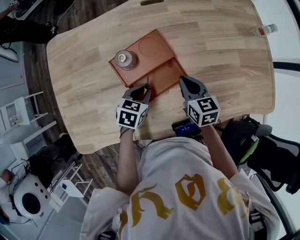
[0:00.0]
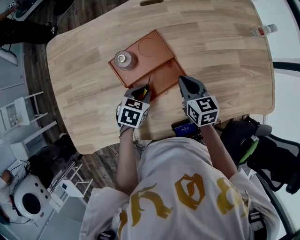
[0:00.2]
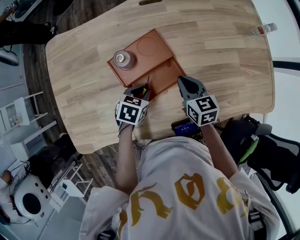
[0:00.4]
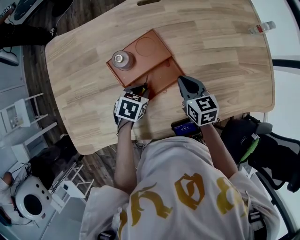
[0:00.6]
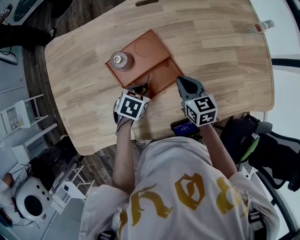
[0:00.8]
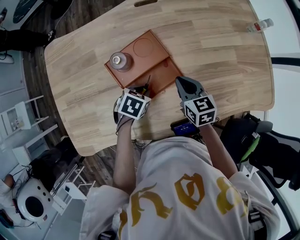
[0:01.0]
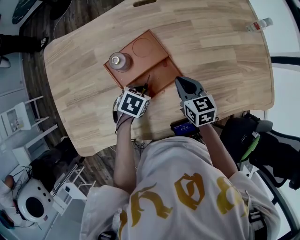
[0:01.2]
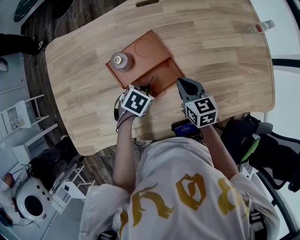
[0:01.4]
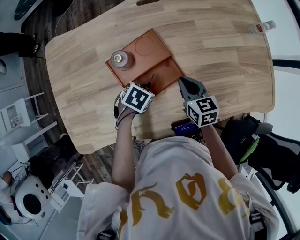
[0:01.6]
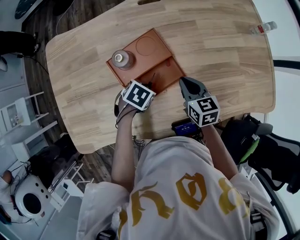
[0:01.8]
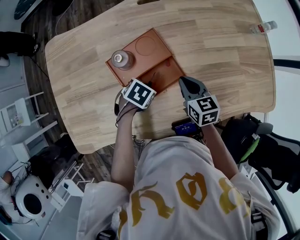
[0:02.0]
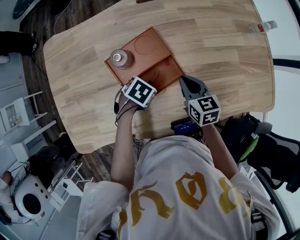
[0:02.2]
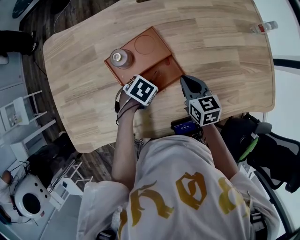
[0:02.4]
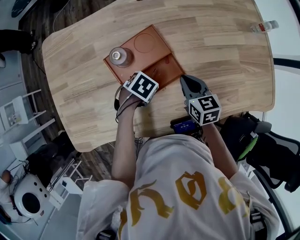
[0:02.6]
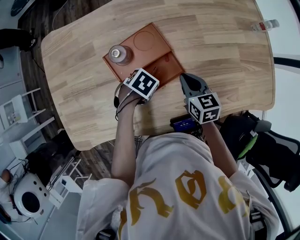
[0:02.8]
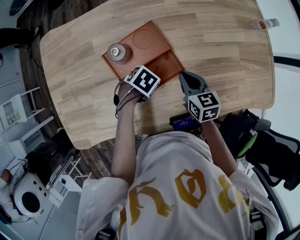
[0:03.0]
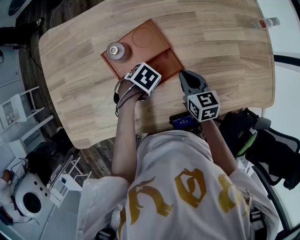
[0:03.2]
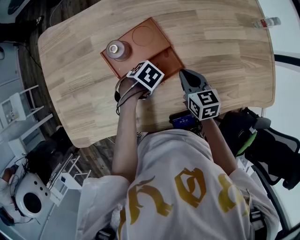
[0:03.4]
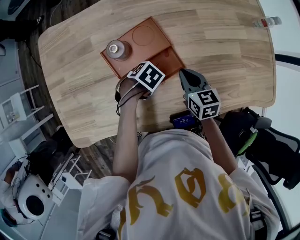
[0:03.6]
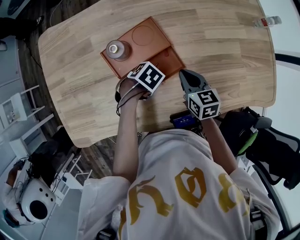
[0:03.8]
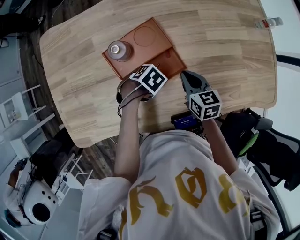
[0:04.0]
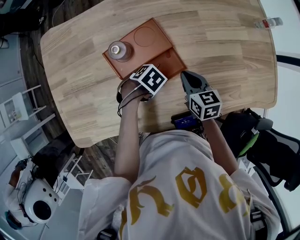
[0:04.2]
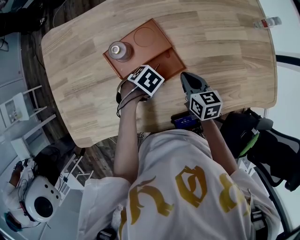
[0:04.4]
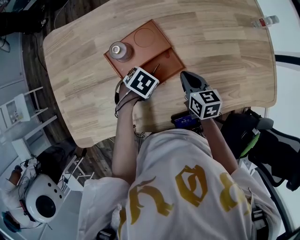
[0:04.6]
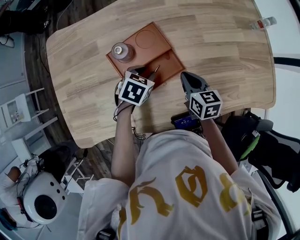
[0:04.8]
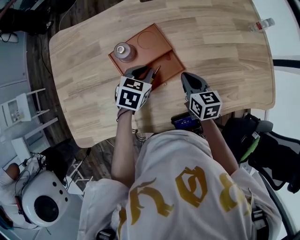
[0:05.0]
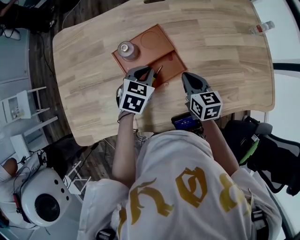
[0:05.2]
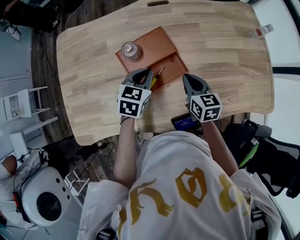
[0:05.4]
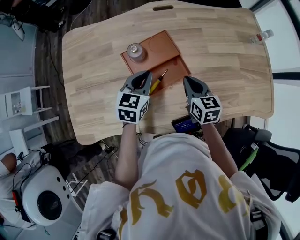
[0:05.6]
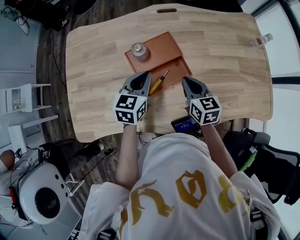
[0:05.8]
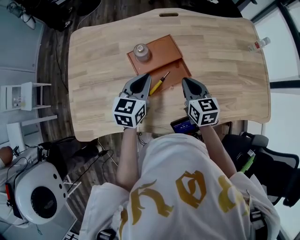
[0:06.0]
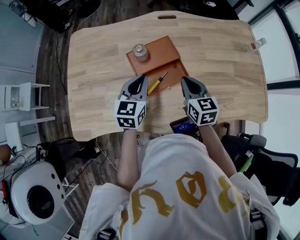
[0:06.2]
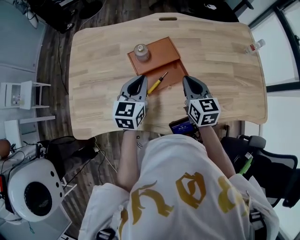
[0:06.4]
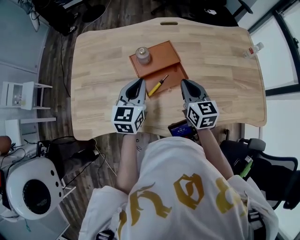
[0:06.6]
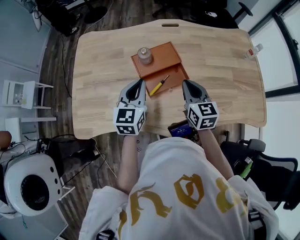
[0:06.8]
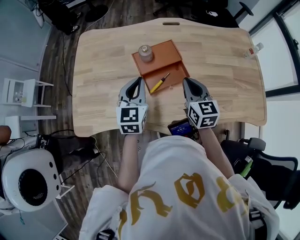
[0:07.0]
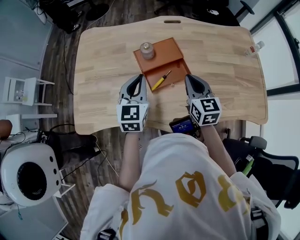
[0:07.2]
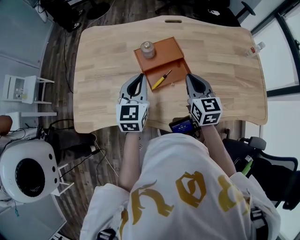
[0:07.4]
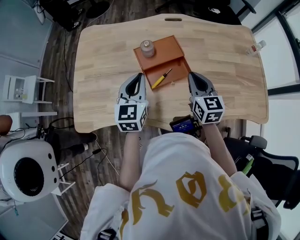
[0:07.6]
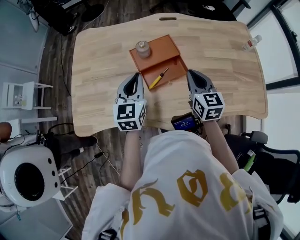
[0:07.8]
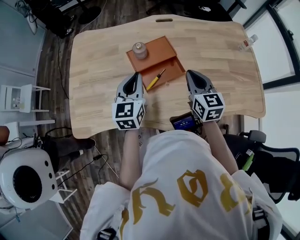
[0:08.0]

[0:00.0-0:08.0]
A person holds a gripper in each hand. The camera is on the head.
0:00.0 to 0:01.6: The left gripper rotates about 20 degrees.
0:01.6 to 0:03.2: The grippers make only small movements.
0:03.2 to 0:04.8: The left gripper moves upward, roughly 5 cm, and turns by some 30 degrees.
0:04.8 to 0:06.4: The left gripper shifts about 15 cm upward and backward, points its fingers approximately 40 degrees further upward, and closes up; the right gripper travels upward by approximately 10 cm, and swivels about 20 degrees.
0:06.4 to 0:08.0: The grippers move only a little.

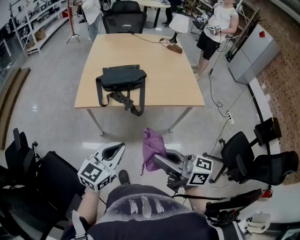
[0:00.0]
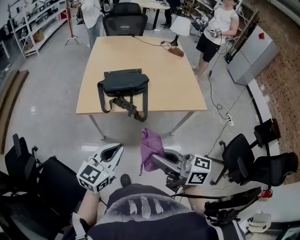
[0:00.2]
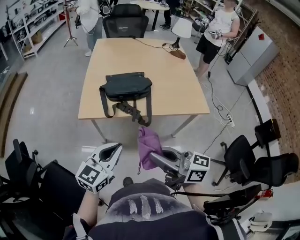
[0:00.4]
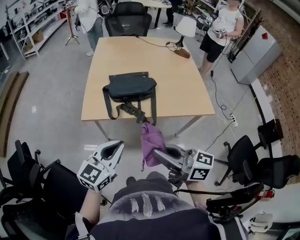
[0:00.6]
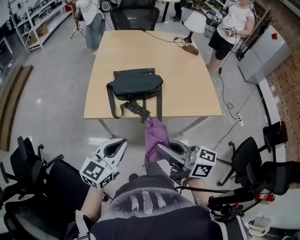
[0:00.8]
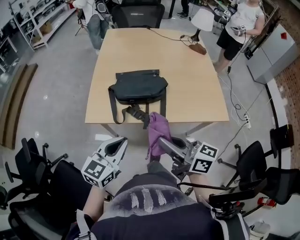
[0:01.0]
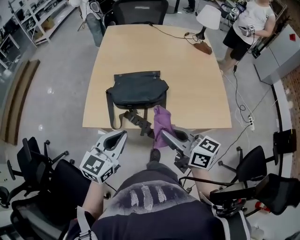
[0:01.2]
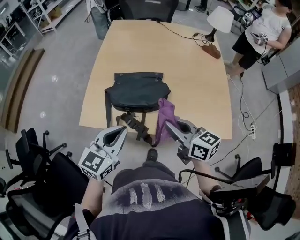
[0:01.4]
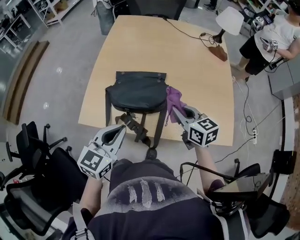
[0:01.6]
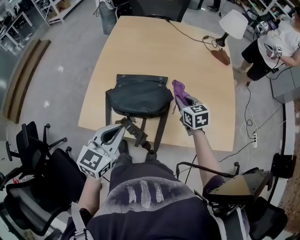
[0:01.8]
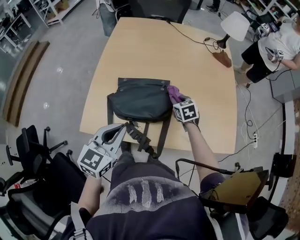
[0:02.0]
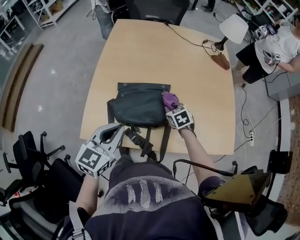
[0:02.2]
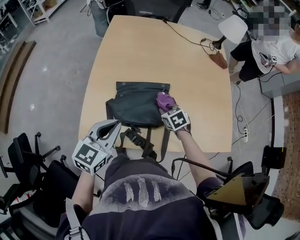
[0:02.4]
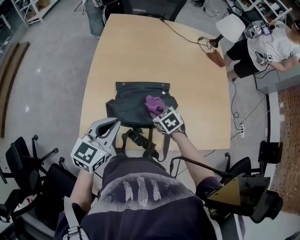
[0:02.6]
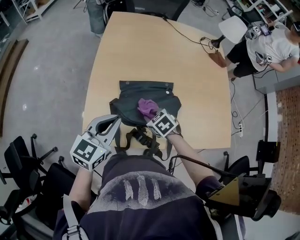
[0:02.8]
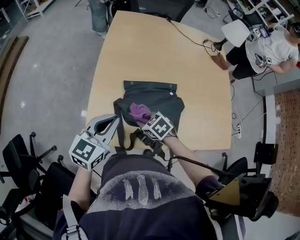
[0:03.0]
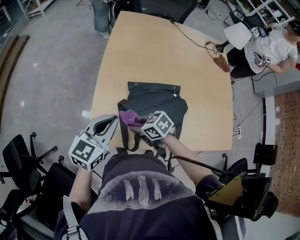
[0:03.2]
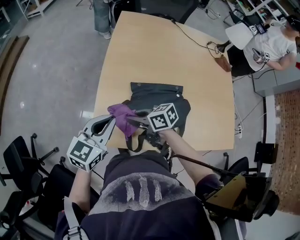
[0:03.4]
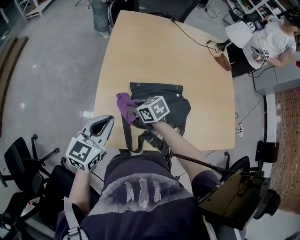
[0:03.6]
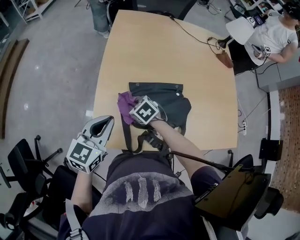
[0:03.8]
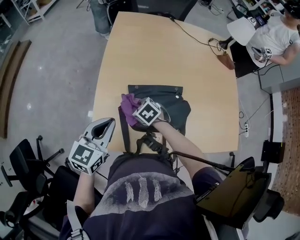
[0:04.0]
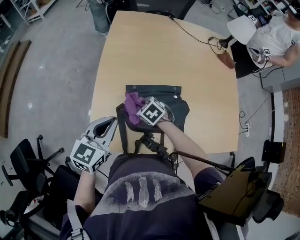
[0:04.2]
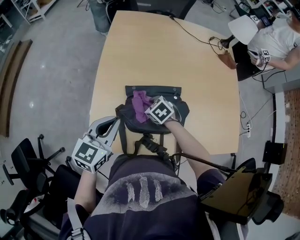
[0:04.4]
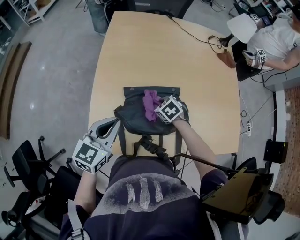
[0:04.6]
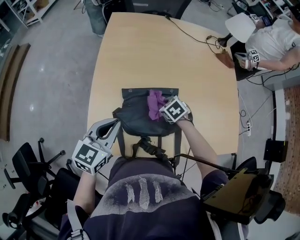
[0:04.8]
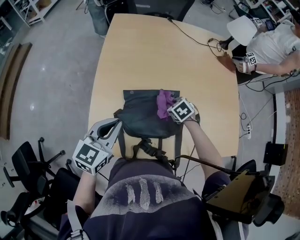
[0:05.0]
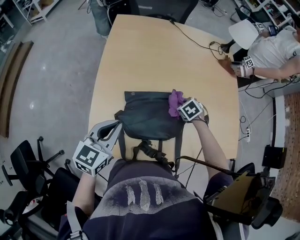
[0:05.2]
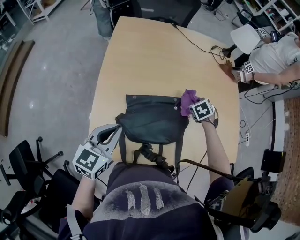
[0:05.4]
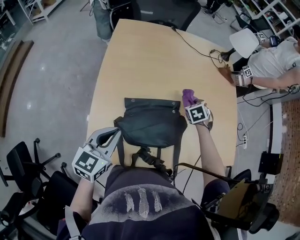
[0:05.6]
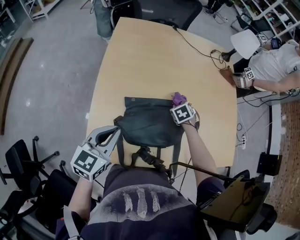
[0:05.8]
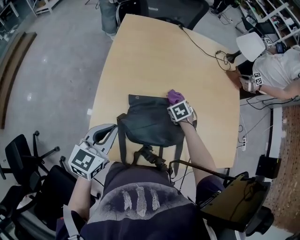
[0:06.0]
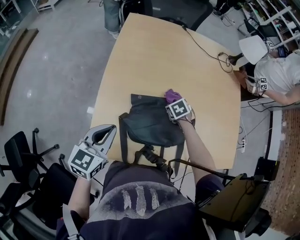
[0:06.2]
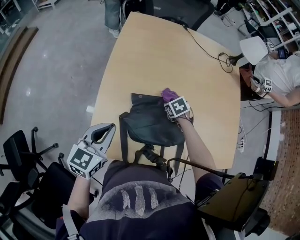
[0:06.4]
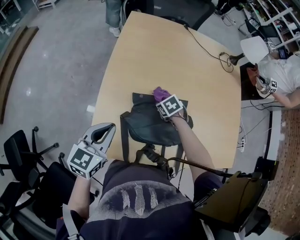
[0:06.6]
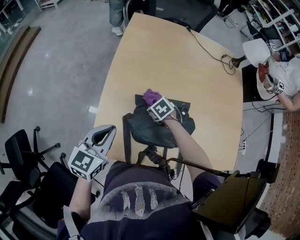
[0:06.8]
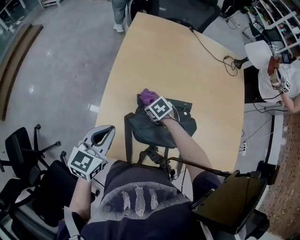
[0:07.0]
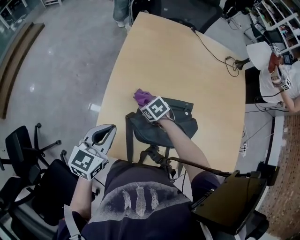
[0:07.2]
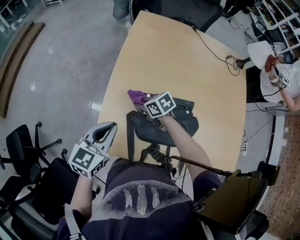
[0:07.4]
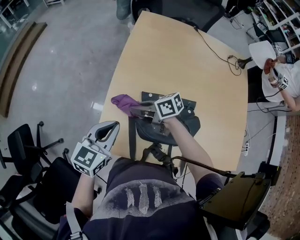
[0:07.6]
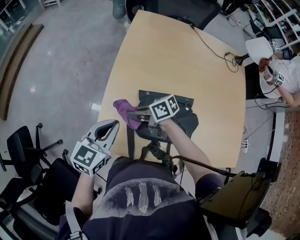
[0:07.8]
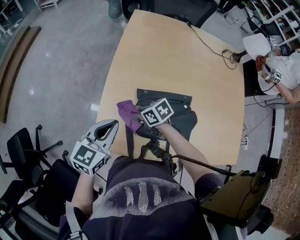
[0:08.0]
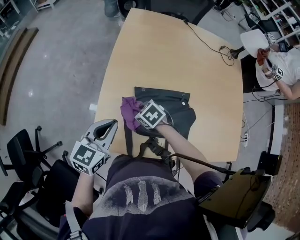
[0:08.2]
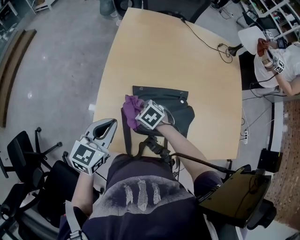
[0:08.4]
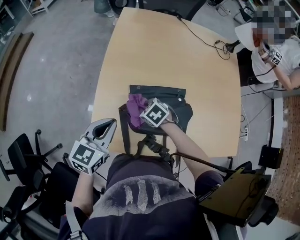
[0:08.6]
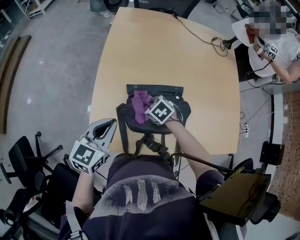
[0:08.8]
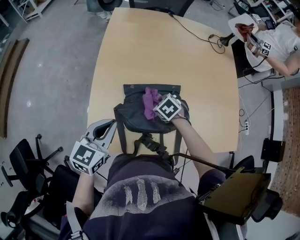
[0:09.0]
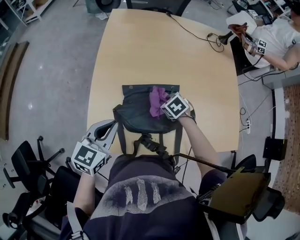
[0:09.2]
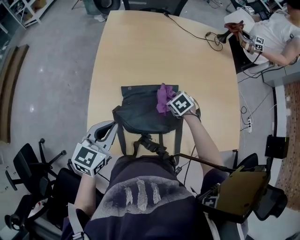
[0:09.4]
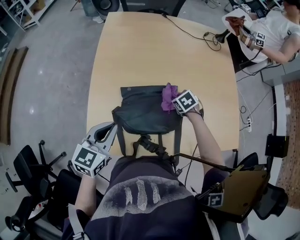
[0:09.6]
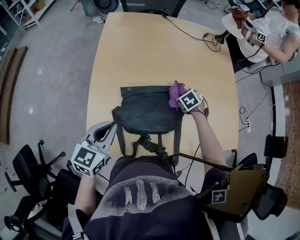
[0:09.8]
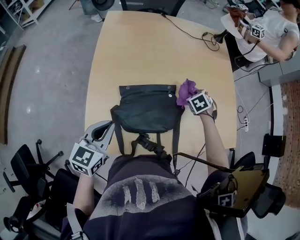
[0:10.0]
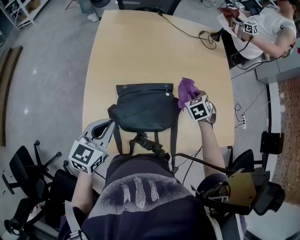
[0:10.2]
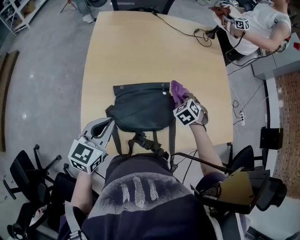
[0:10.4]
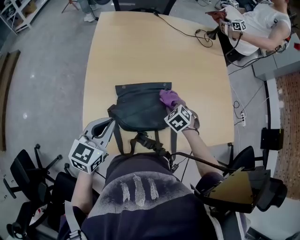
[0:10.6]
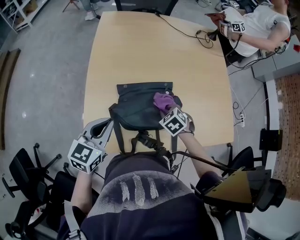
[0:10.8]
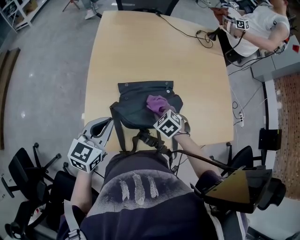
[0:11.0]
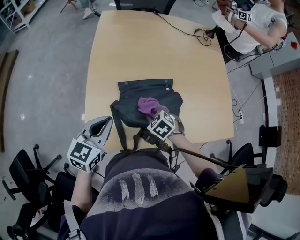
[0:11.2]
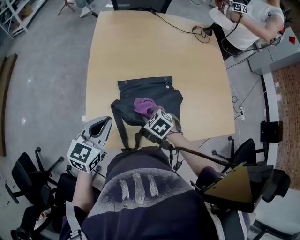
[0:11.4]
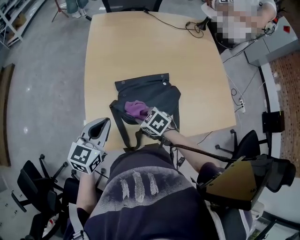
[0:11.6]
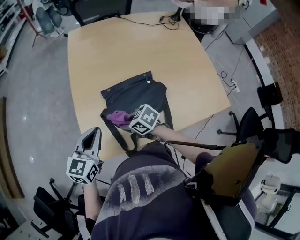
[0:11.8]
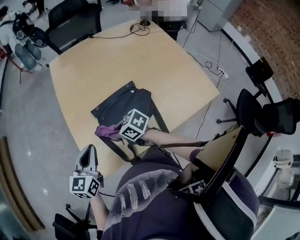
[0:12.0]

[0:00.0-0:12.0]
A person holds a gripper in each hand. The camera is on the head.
0:00.0 to 0:01.6: The two grippers go approximately 40 cm forward. The right gripper turns by some 30 degrees.
0:01.6 to 0:03.0: The left gripper heads to the left and forward, covering approximately 20 cm. The right gripper moves to the left and downward, roughly 30 cm, and tilts its fingers some 40 degrees downward.
0:03.0 to 0:04.4: The right gripper is displaced forward and to the right by about 10 cm.
0:04.4 to 0:06.0: The right gripper rotates roughly 20 degrees.
0:06.0 to 0:07.6: The right gripper shifts by some 30 cm, and tips its fingers upward by some 50 degrees. Meanwhile the left gripper ends up roughly 5 cm from where it was.
0:07.6 to 0:09.0: The right gripper ends up about 20 cm from where it was, and tilts its fingers about 50 degrees downward, while the left gripper changes place by some 5 cm.
0:09.0 to 0:10.4: The right gripper changes place by roughly 15 cm, and swivels about 30 degrees.
0:10.4 to 0:12.0: The right gripper ends up roughly 30 cm from where it was, and swivels roughly 60 degrees. Meanwhile the left gripper changes place by roughly 5 cm.

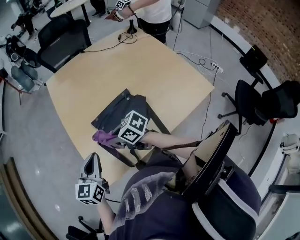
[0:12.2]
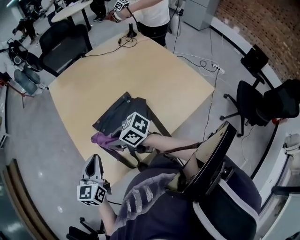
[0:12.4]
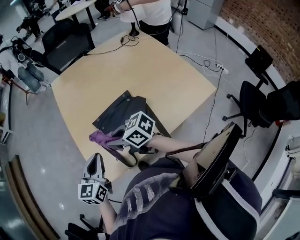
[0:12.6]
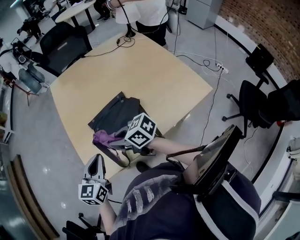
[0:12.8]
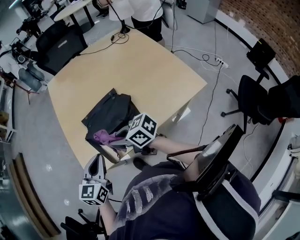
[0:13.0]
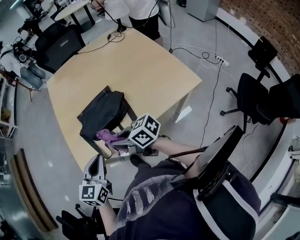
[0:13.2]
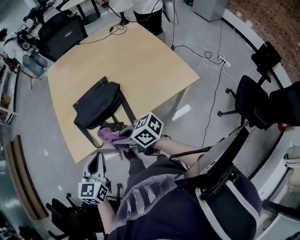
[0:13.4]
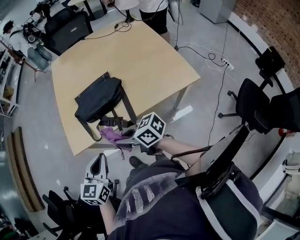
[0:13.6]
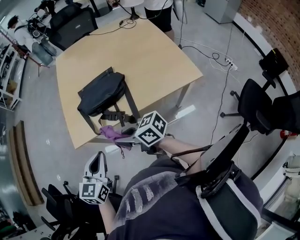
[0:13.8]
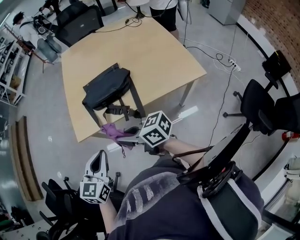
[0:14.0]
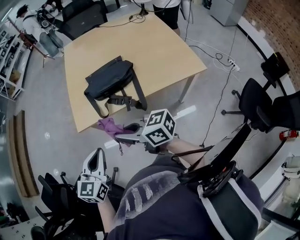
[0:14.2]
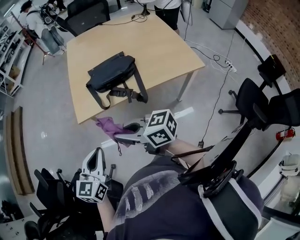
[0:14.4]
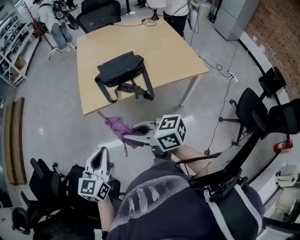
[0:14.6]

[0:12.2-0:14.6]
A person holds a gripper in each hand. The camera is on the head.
0:12.2 to 0:13.4: Both grippers move backward and to the right, about 25 cm.
0:13.4 to 0:14.6: The right gripper is displaced backward, to the left and upward by about 25 cm. Meanwhile the left gripper shifts roughly 25 cm to the left and backward.

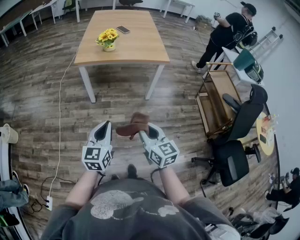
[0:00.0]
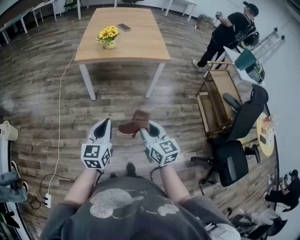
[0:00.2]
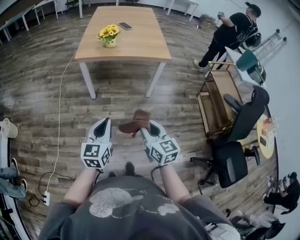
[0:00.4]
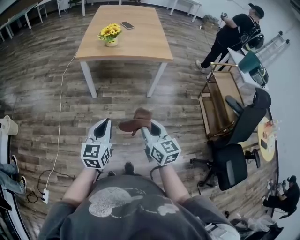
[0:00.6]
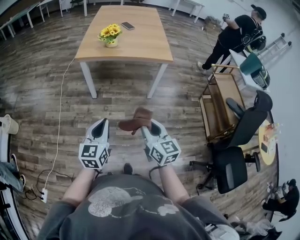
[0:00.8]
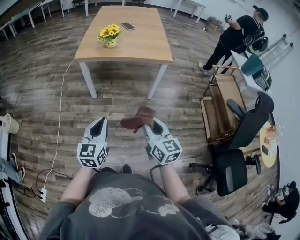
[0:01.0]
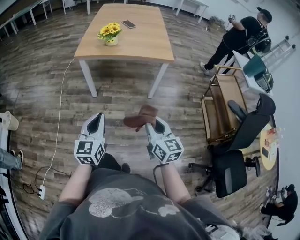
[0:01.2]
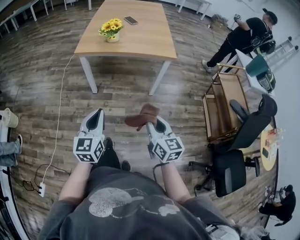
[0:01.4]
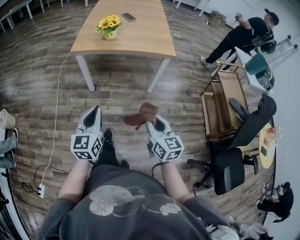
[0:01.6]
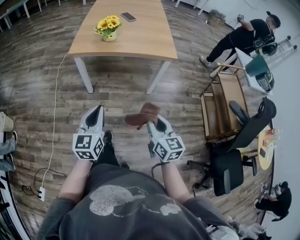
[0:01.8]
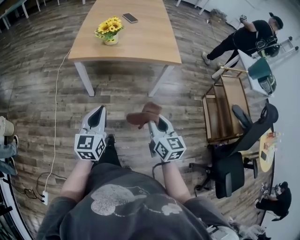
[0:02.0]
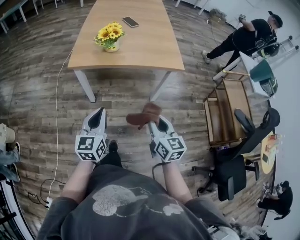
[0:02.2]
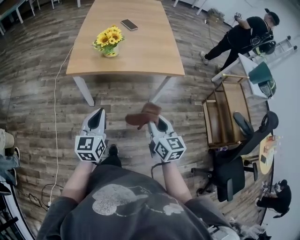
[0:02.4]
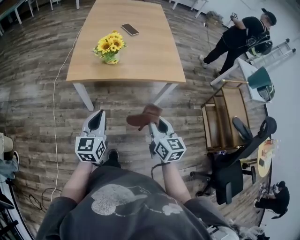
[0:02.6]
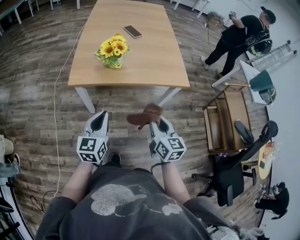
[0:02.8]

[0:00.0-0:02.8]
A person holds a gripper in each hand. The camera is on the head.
0:00.0 to 0:01.4: The right gripper moves to the right and forward, some 10 cm. The left gripper travels forward by roughly 5 cm.
0:01.4 to 0:02.8: Both grippers move forward, some 30 cm.
